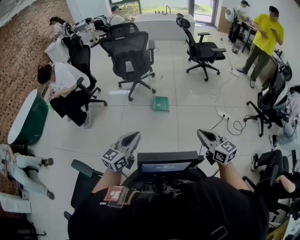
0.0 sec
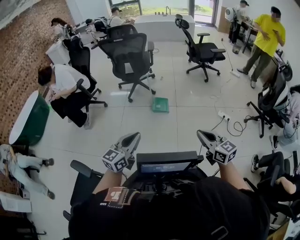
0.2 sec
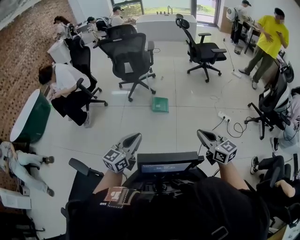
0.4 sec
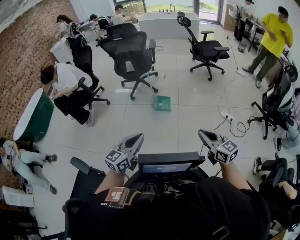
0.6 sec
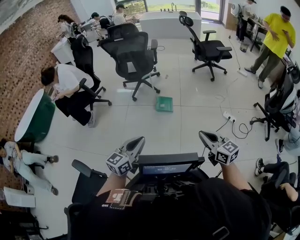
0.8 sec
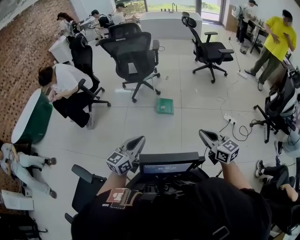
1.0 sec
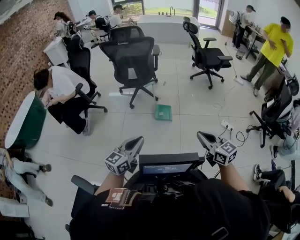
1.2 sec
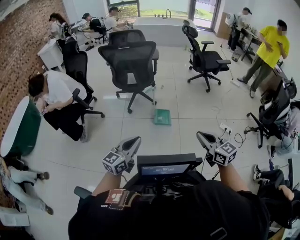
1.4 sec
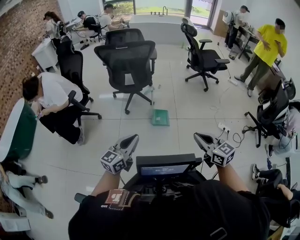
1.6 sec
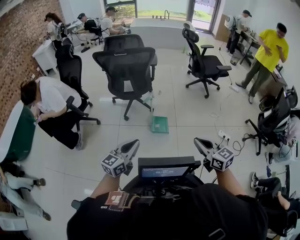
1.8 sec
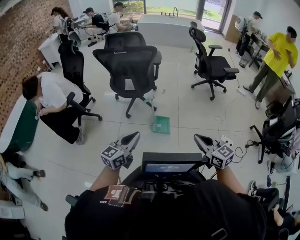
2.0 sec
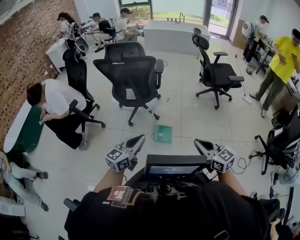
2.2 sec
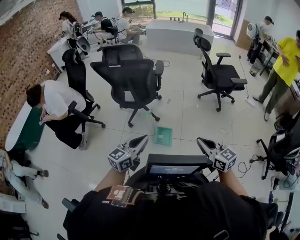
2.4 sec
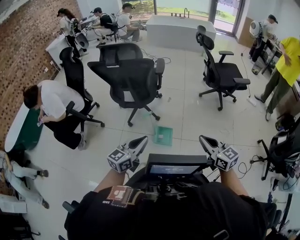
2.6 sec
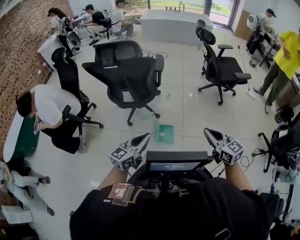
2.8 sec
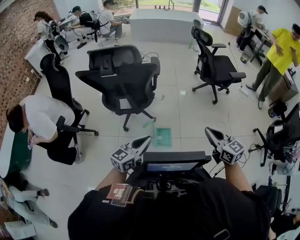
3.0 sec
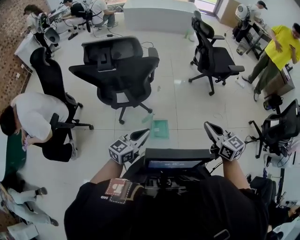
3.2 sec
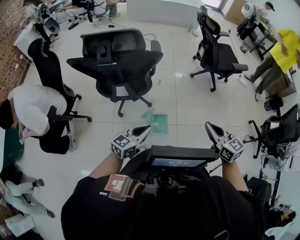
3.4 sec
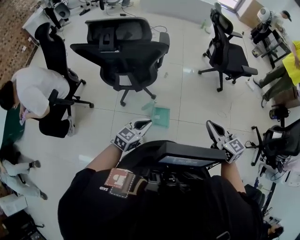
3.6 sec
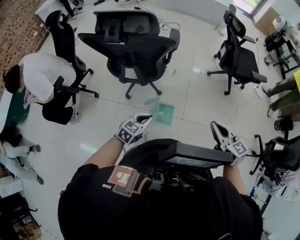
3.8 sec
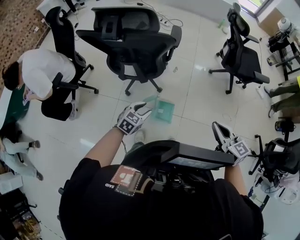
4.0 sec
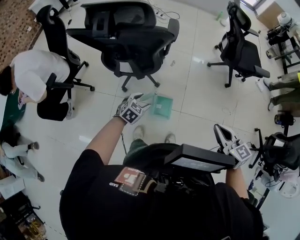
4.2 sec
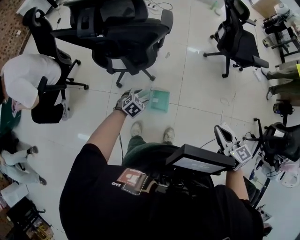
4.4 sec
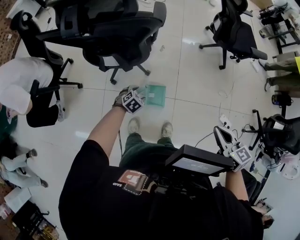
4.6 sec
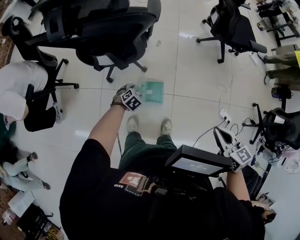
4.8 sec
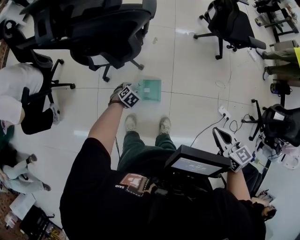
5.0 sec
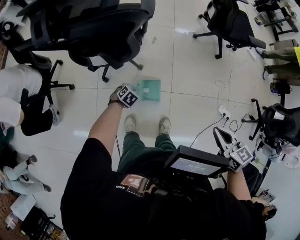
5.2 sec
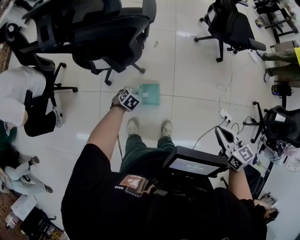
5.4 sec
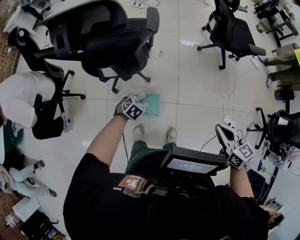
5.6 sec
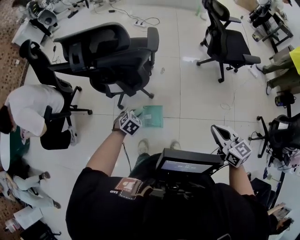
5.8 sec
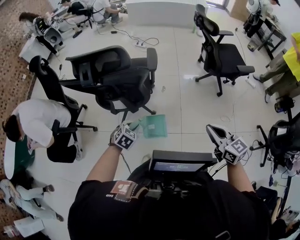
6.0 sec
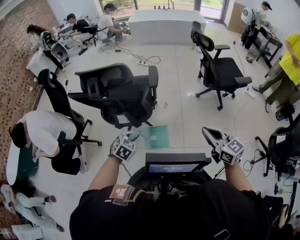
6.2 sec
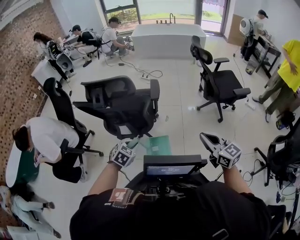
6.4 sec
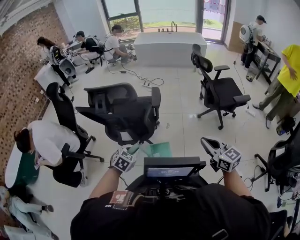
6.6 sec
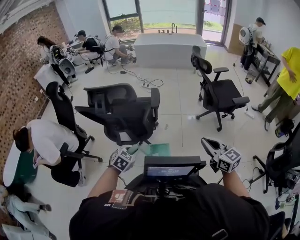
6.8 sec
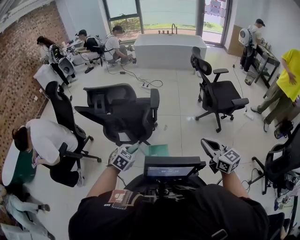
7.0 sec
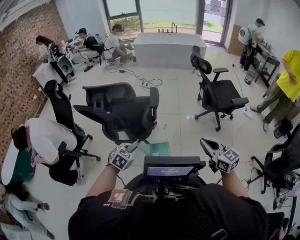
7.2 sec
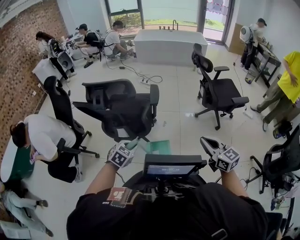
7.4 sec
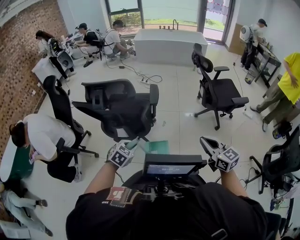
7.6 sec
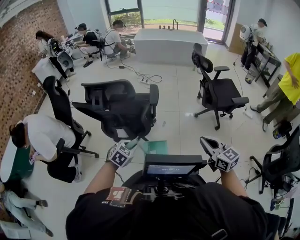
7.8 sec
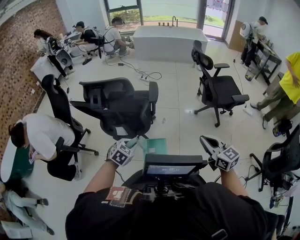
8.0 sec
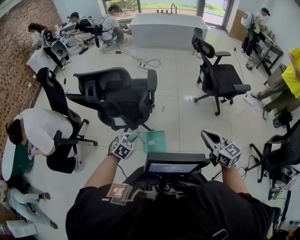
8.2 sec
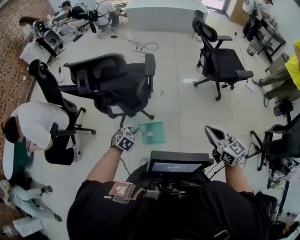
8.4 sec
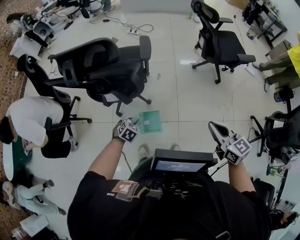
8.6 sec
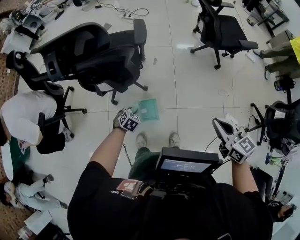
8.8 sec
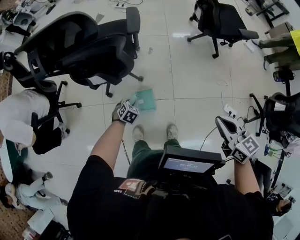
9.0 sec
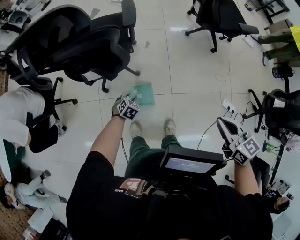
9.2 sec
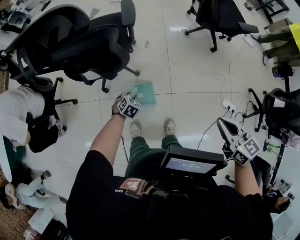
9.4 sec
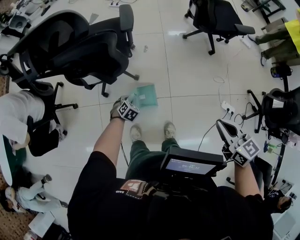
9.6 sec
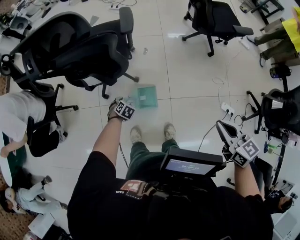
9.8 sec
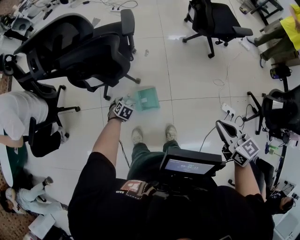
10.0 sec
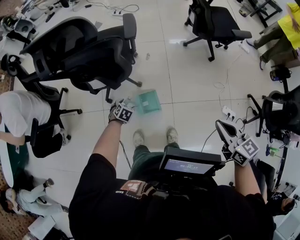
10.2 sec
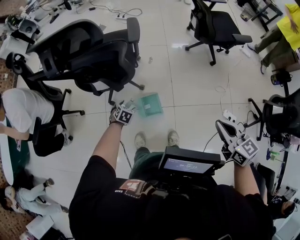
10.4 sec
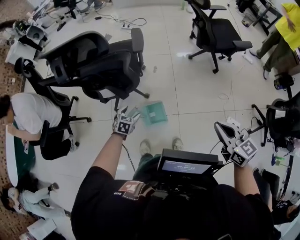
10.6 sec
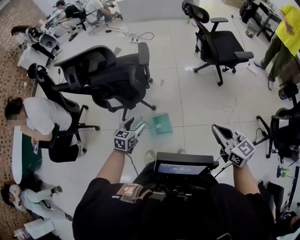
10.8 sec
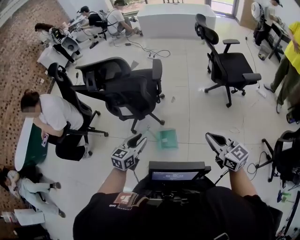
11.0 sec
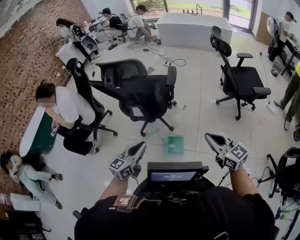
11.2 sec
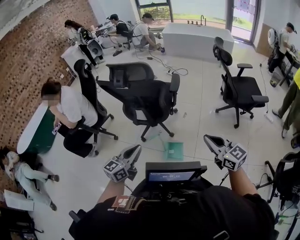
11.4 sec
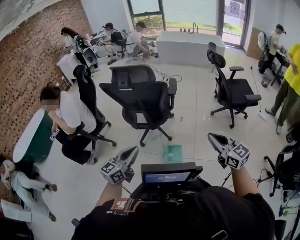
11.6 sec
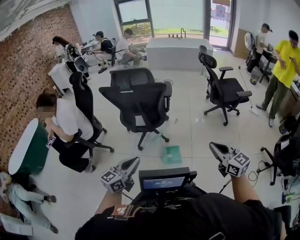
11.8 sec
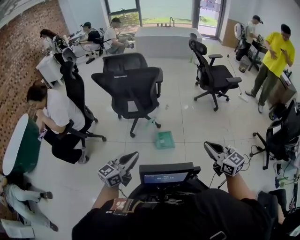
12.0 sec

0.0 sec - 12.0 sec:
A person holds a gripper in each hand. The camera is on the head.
0.0 sec - 1.6 sec: Both grippers travel together forward and to the left, approximately 40 cm.
1.6 sec - 3.0 sec: The pair of grippers is taken forward, approximately 60 cm.
3.0 sec - 4.4 sec: The right gripper moves forward and downward, approximately 20 cm; the left gripper moves downward and forward, roughly 40 cm, angles its fingers downward, by about 50 degrees, and opens up.
4.4 sec - 6.0 sec: The right gripper heads upward, covering about 10 cm. The left gripper shifts roughly 20 cm upward, and closes up.
6.0 sec - 7.6 sec: The two grippers go about 10 cm upward.
7.6 sec - 9.0 sec: The left gripper goes approximately 40 cm downward. Meanwhile the right gripper is displaced downward by roughly 20 cm, and swivels approximately 20 degrees.
9.0 sec - 10.4 sec: The right gripper heads backward, covering approximately 5 cm; the left gripper reaches some 5 cm downward, then returns, and opens its fingers.
10.4 sec - 12.0 sec: Both grippers are carried backward, roughly 60 cm. The right gripper heads upward, covering some 20 cm. Meanwhile the left gripper is displaced upward by some 50 cm, points its fingers approximately 60 degrees further upward, and closes up.

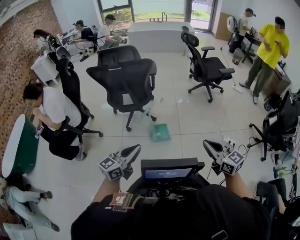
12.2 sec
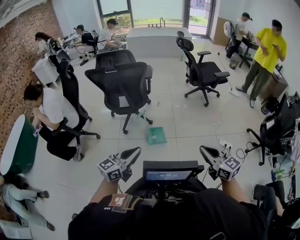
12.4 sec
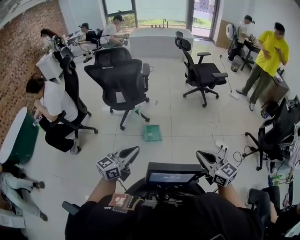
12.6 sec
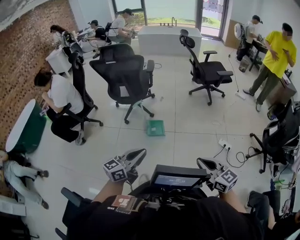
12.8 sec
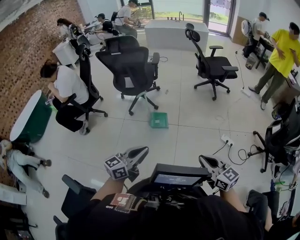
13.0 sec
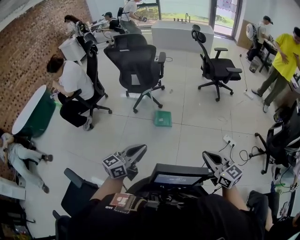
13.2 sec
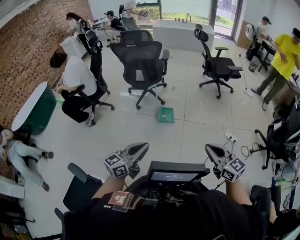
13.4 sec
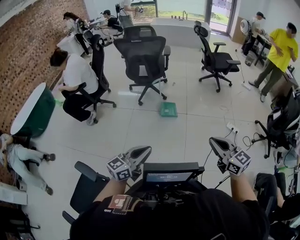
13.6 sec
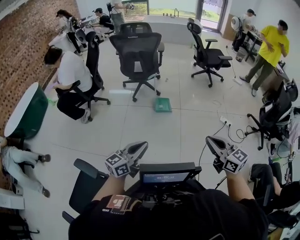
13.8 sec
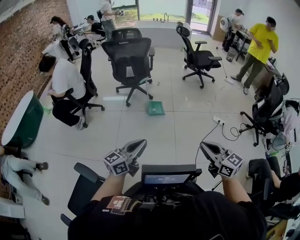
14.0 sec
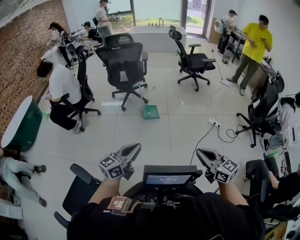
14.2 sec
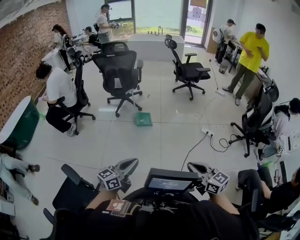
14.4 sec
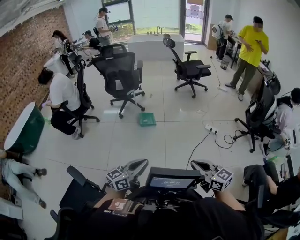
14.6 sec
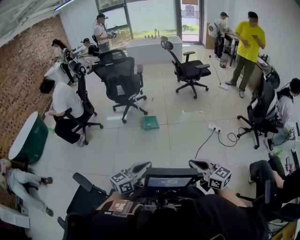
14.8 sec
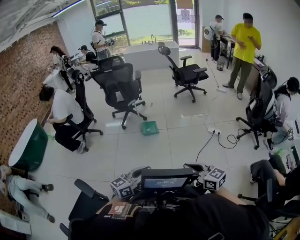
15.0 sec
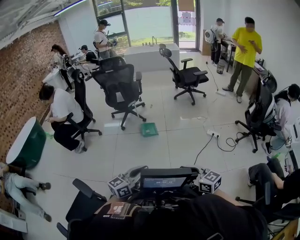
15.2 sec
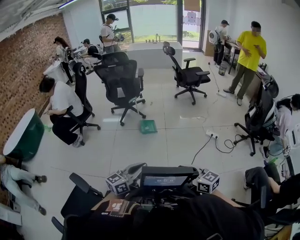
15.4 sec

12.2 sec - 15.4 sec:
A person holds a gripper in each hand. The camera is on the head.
12.2 sec - 13.8 sec: Both grippers are carried backward, some 60 cm.
13.8 sec - 15.4 sec: The left gripper moves to the right and backward, roughly 25 cm, while the right gripper travels backward and to the right by about 20 cm.

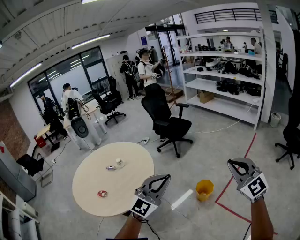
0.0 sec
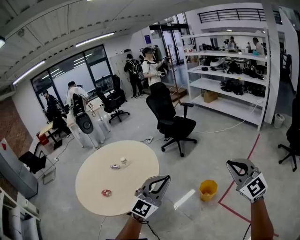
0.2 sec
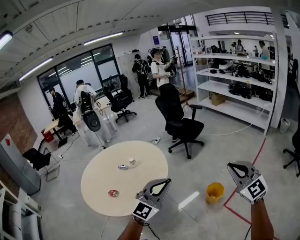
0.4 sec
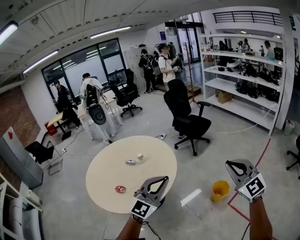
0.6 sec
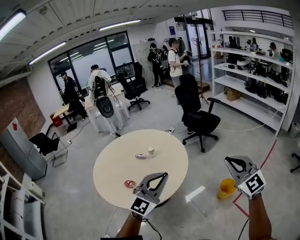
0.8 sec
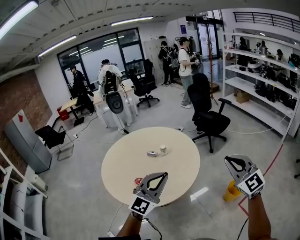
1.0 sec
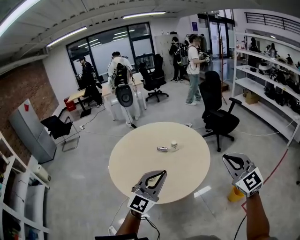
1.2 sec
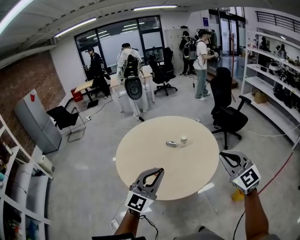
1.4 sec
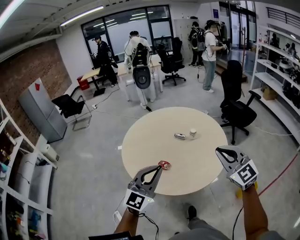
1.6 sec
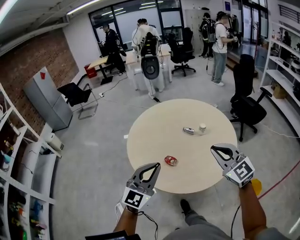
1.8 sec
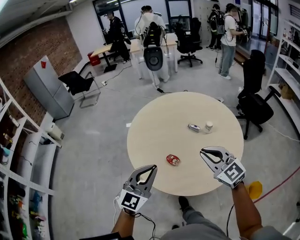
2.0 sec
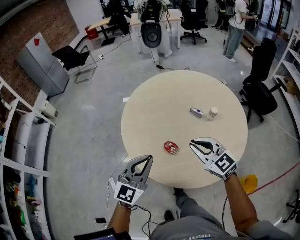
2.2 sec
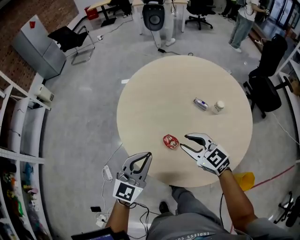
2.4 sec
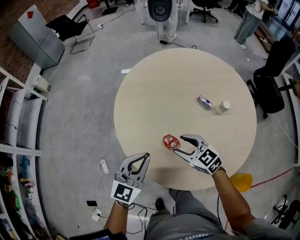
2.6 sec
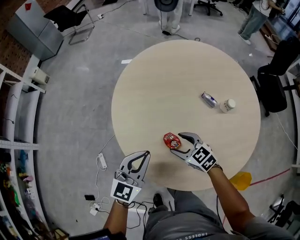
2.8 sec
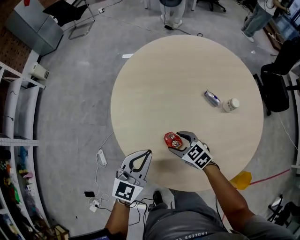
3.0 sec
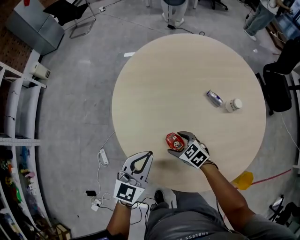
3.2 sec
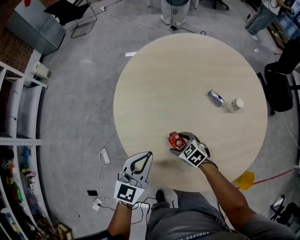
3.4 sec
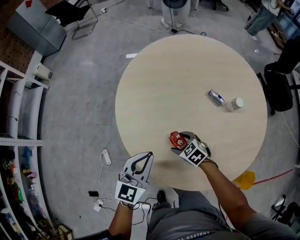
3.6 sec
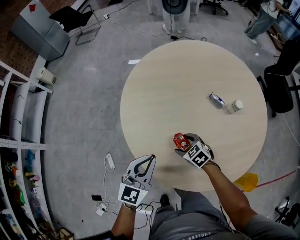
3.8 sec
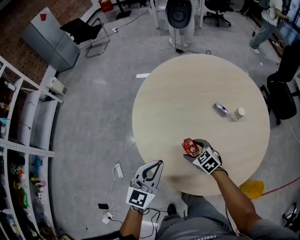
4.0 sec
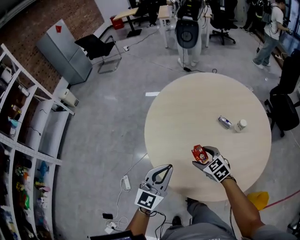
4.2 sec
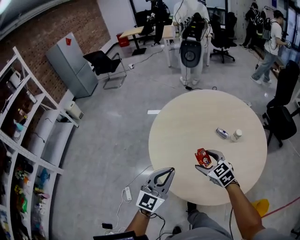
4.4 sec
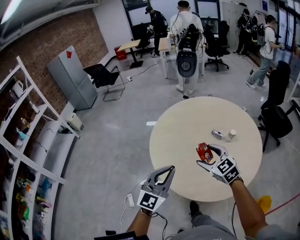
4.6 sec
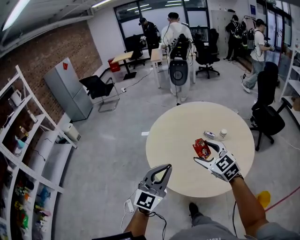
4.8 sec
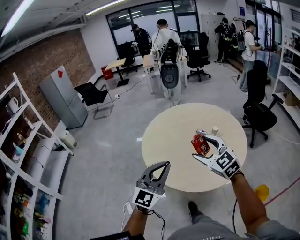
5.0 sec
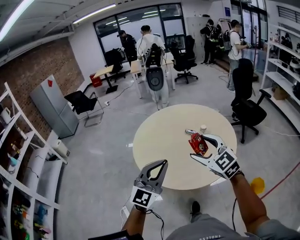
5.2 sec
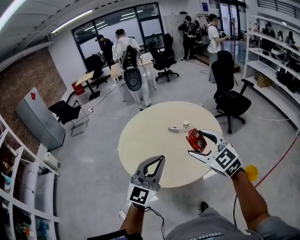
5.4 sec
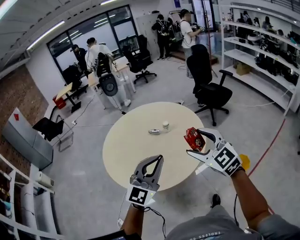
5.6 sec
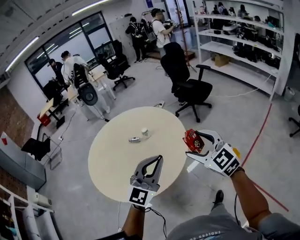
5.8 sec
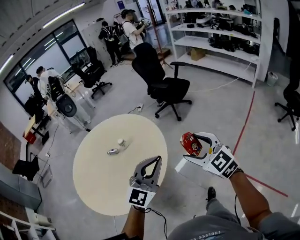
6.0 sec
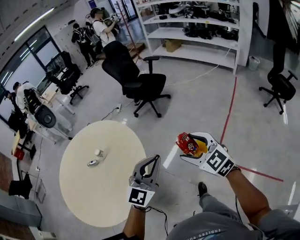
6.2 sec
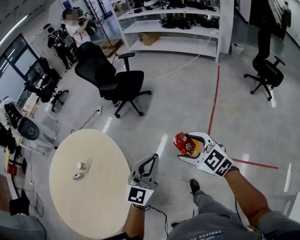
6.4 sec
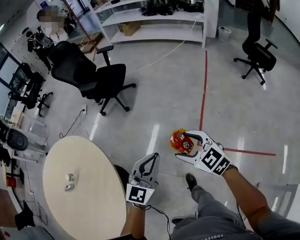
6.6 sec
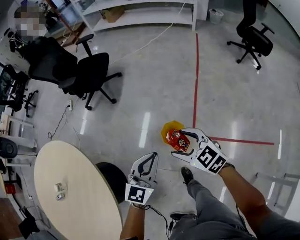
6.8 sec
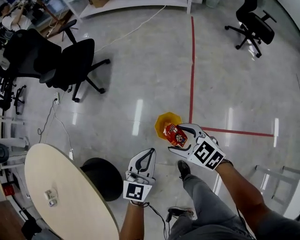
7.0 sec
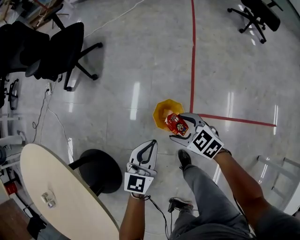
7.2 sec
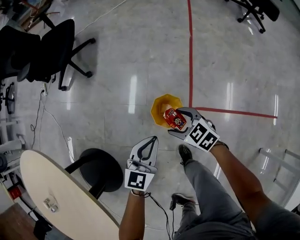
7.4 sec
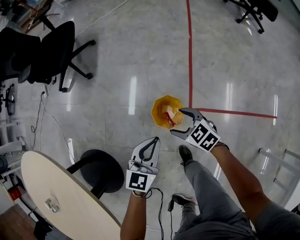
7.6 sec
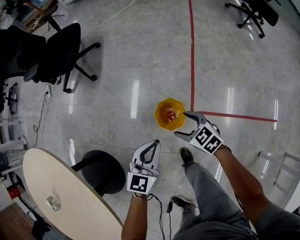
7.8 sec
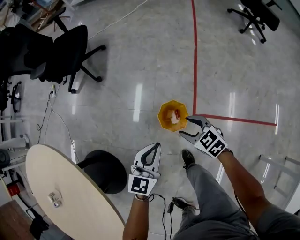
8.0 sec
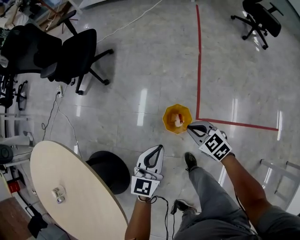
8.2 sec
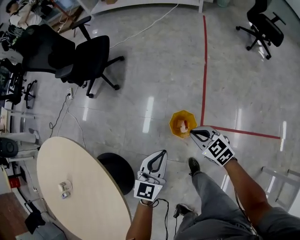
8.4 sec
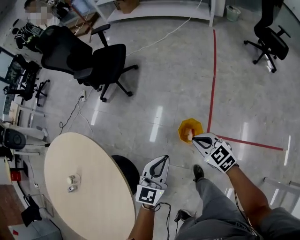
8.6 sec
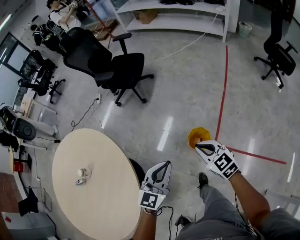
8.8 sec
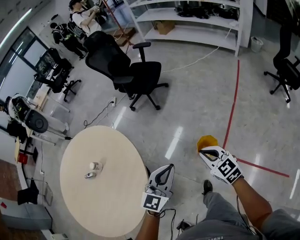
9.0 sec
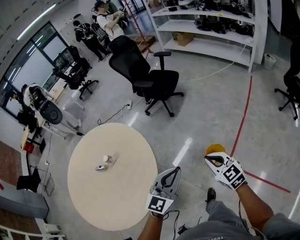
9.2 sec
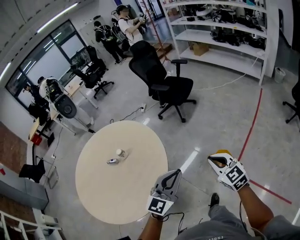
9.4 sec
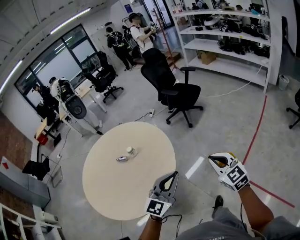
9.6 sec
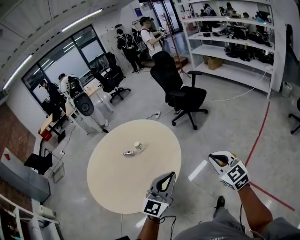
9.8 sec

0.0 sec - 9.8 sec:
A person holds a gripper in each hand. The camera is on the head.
0.0 sec - 1.4 sec: Both grippers are carried about 60 cm. The left gripper rotates approximately 30 degrees. The right gripper swivels roughly 20 degrees.
1.4 sec - 2.8 sec: The left gripper shifts by about 40 cm, and turns by some 40 degrees. Meanwhile the right gripper shifts about 50 cm downward, tips its fingers downward by some 30 degrees, and opens up.
2.8 sec - 4.2 sec: The right gripper reaches about 10 cm downward, then returns, while the left gripper heads upward, covering some 10 cm.
4.2 sec - 5.6 sec: The right gripper moves about 50 cm, and points its fingers some 30 degrees further upward. Meanwhile the left gripper shifts by roughly 40 cm, and turns by approximately 40 degrees.
5.6 sec - 7.0 sec: The two grippers travel together, approximately 80 cm. The right gripper turns by approximately 50 degrees, while the left gripper swivels about 50 degrees.
7.0 sec - 8.4 sec: The right gripper reaches roughly 20 cm downward, then returns, and closes its fingers; the left gripper reaches some 15 cm downward, then returns.
8.4 sec - 9.8 sec: The pair of grippers is taken backward and to the left, approximately 50 cm. Both grippers move upward, approximately 40 cm. The left gripper rotates roughly 40 degrees. The right gripper turns by roughly 40 degrees.
